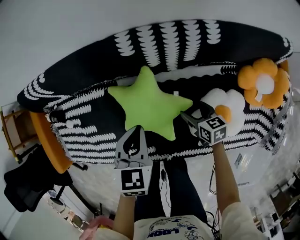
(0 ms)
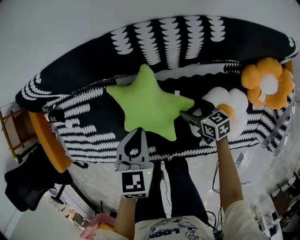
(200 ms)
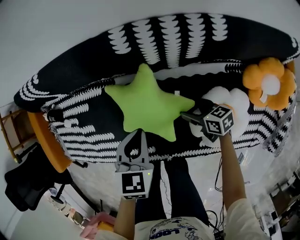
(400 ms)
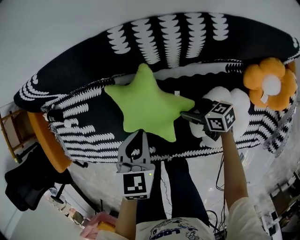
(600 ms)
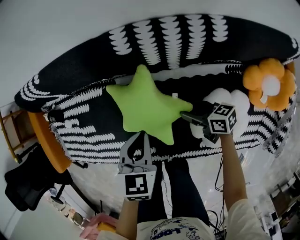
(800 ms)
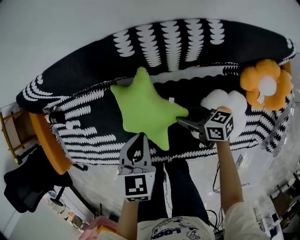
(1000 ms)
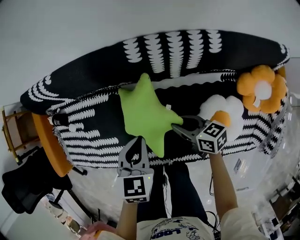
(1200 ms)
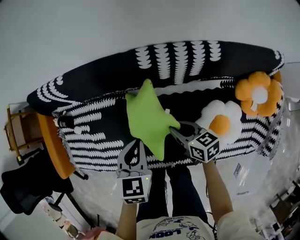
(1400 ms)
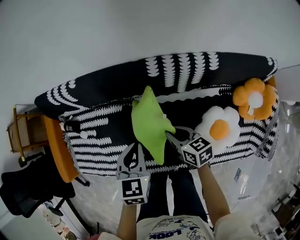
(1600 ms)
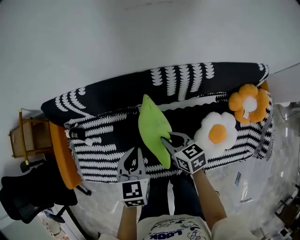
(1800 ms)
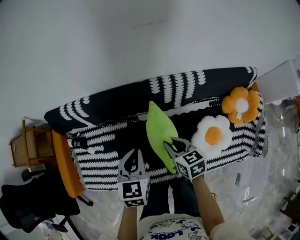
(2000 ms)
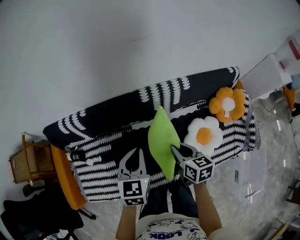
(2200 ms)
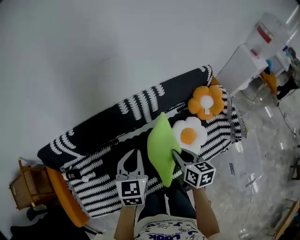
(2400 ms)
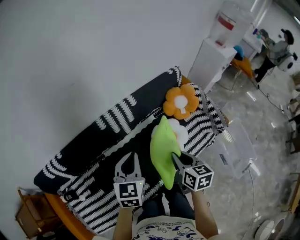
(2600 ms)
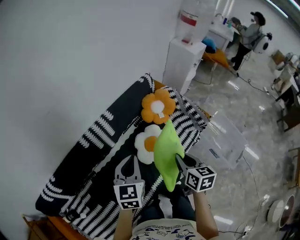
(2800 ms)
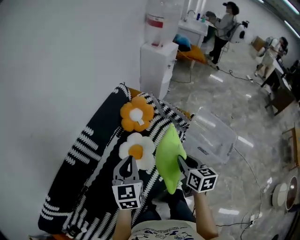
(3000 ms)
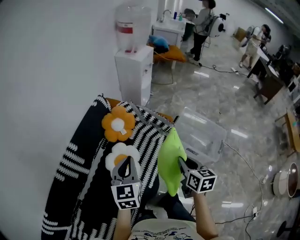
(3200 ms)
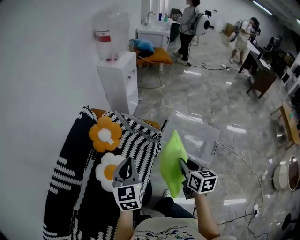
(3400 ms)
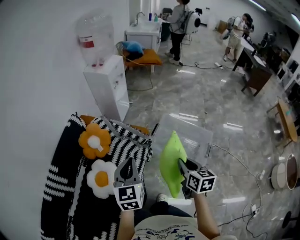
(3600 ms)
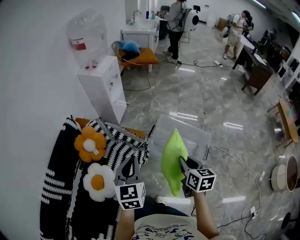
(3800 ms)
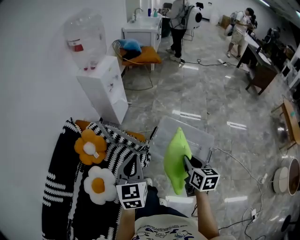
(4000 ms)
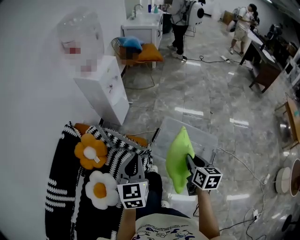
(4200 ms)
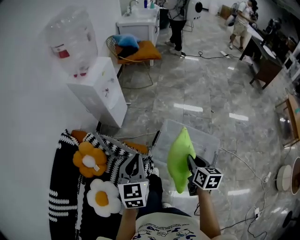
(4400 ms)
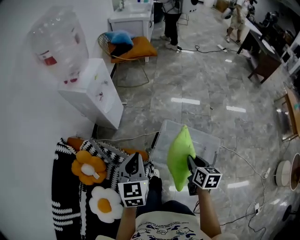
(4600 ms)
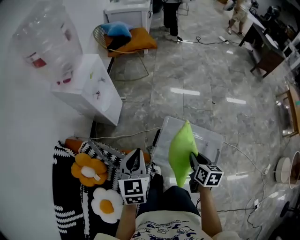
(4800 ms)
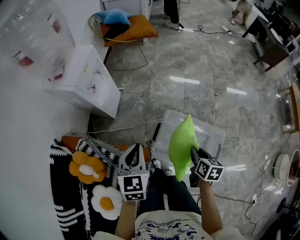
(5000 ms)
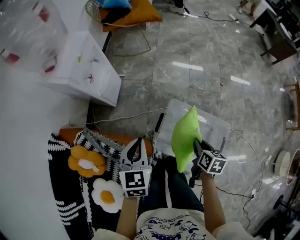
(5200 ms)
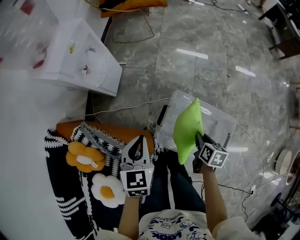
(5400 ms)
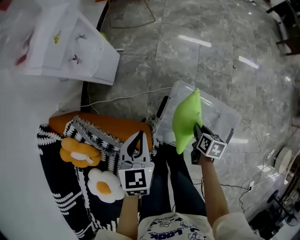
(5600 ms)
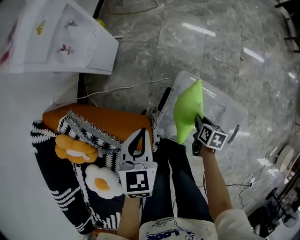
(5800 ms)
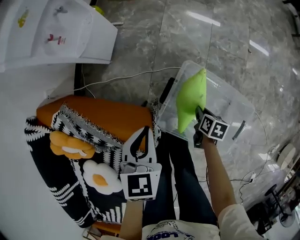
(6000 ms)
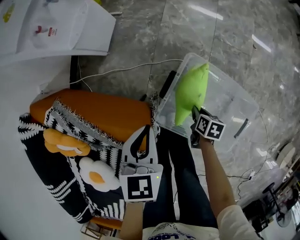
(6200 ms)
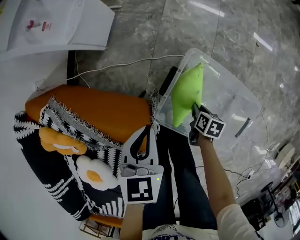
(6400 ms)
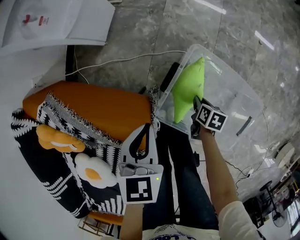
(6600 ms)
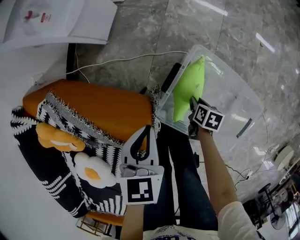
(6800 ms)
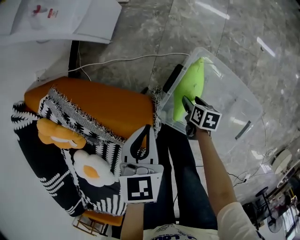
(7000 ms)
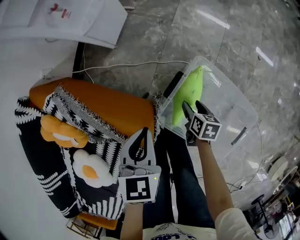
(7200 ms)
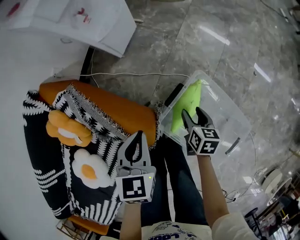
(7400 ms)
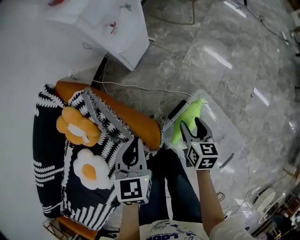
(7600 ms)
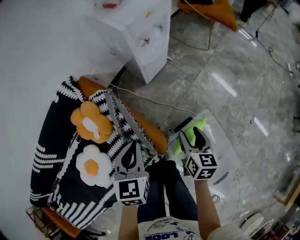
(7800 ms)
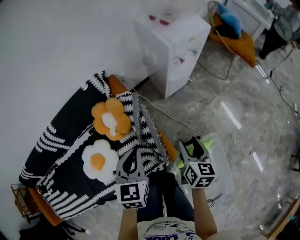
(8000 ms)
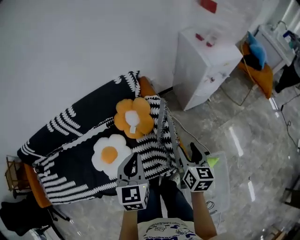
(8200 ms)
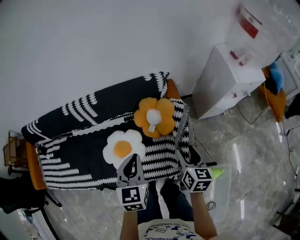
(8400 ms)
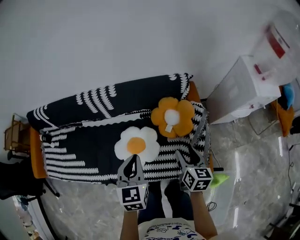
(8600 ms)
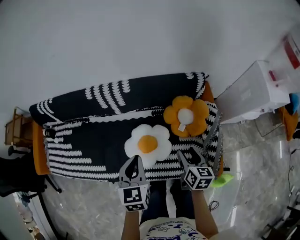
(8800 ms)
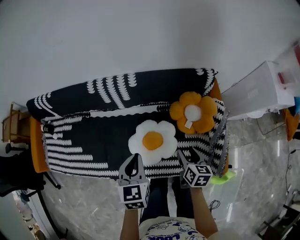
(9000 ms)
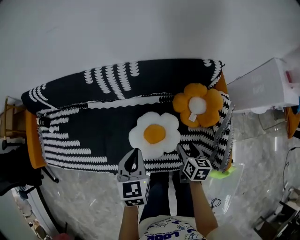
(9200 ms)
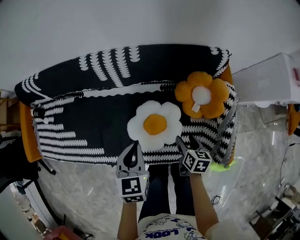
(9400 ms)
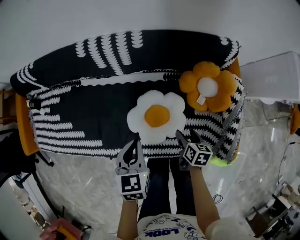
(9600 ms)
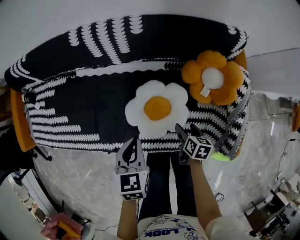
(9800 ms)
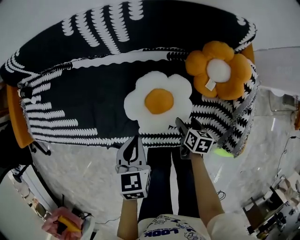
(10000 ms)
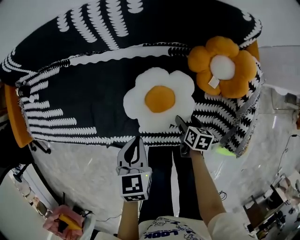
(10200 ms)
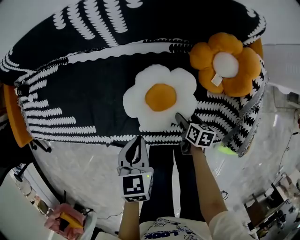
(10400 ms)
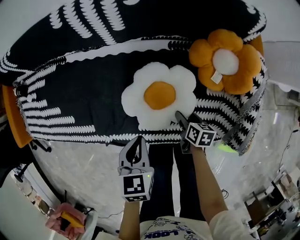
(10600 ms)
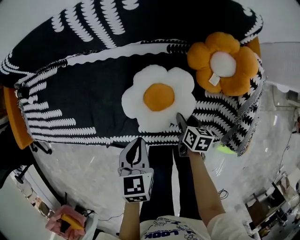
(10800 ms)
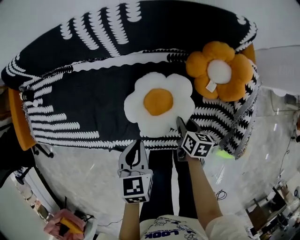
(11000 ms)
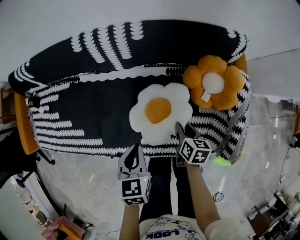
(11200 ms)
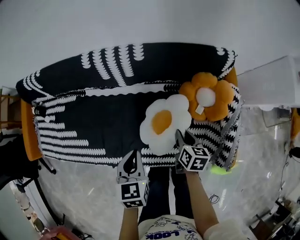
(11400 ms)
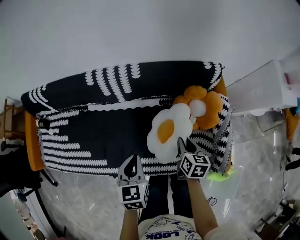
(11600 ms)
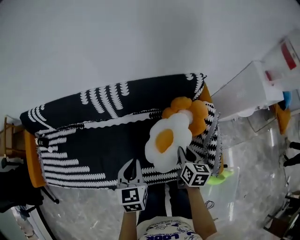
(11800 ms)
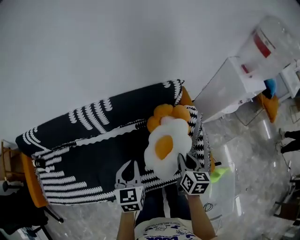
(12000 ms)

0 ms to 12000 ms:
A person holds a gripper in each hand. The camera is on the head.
0 ms to 1600 ms: The left gripper is displaced upward and to the left by about 15 cm; the right gripper is displaced upward and to the left by about 20 cm, and closes up.
1600 ms to 3000 ms: The left gripper ends up some 40 cm from where it was, and turns by approximately 60 degrees, while the right gripper moves some 60 cm, and swivels approximately 80 degrees.
3000 ms to 4400 ms: The pair of grippers is taken to the right and forward, approximately 60 cm. The right gripper rotates about 30 degrees.
4400 ms to 6000 ms: Both grippers travel together downward and forward, roughly 50 cm. The right gripper tilts its fingers some 30 degrees downward. The left gripper turns by about 20 degrees.
6000 ms to 7600 ms: The left gripper goes approximately 15 cm to the left and upward; the right gripper shifts about 25 cm upward and to the left, rotates approximately 40 degrees, and opens.
7600 ms to 9000 ms: Both grippers are carried some 60 cm. The left gripper swivels roughly 60 degrees; the right gripper turns by roughly 50 degrees.
9000 ms to 10400 ms: The two grippers go some 25 cm downward. The right gripper changes its angle by roughly 30 degrees.
10400 ms to 12000 ms: The right gripper goes approximately 40 cm upward, rotates approximately 40 degrees, and closes its fingers; the left gripper moves upward, roughly 25 cm, and swivels some 30 degrees.

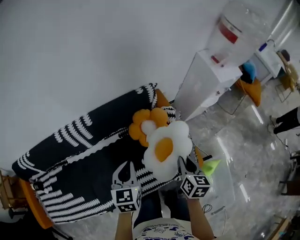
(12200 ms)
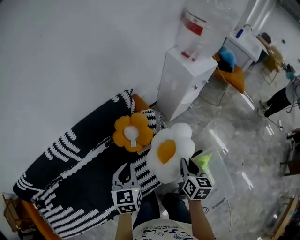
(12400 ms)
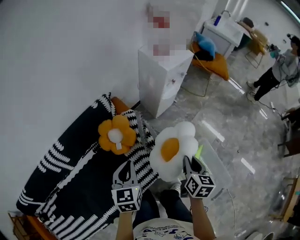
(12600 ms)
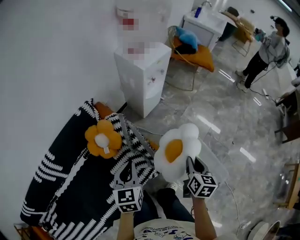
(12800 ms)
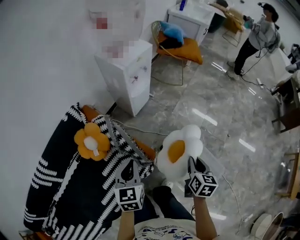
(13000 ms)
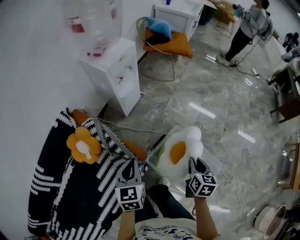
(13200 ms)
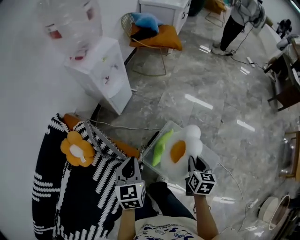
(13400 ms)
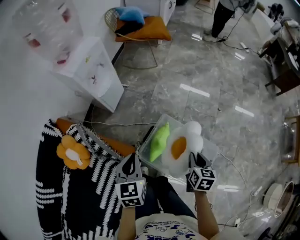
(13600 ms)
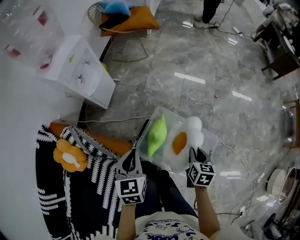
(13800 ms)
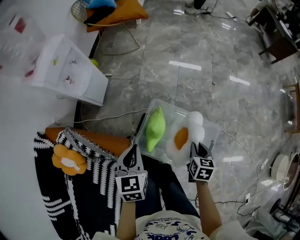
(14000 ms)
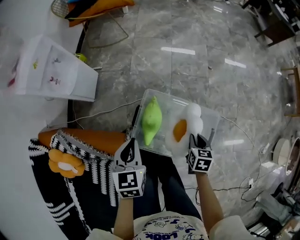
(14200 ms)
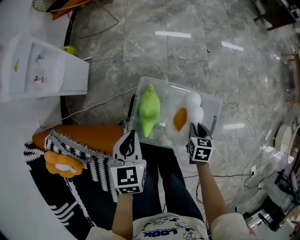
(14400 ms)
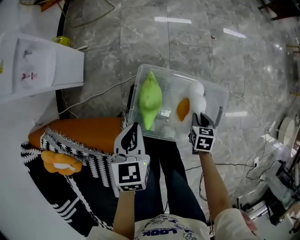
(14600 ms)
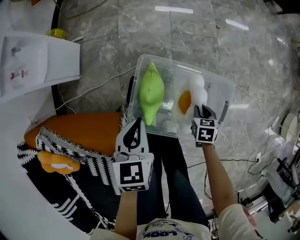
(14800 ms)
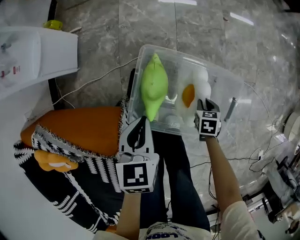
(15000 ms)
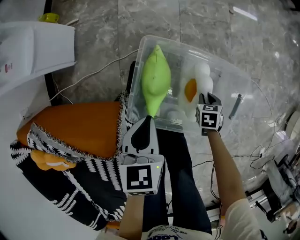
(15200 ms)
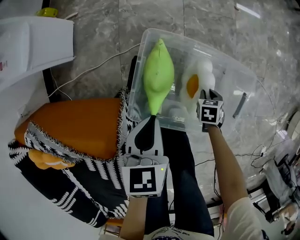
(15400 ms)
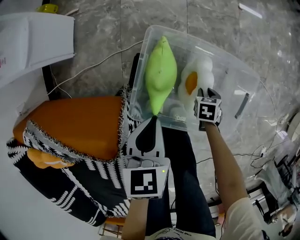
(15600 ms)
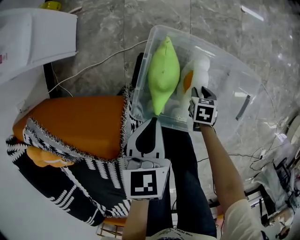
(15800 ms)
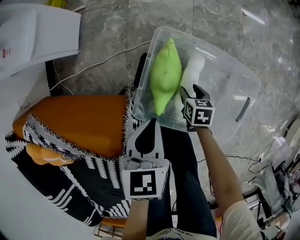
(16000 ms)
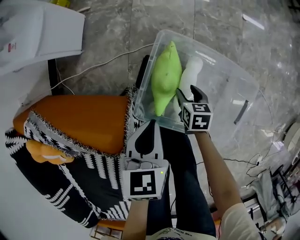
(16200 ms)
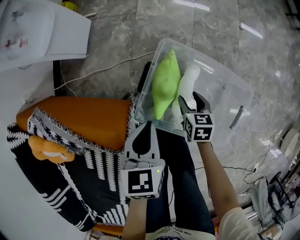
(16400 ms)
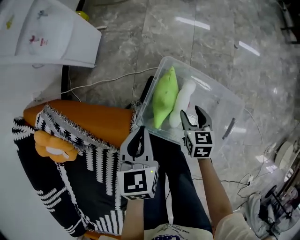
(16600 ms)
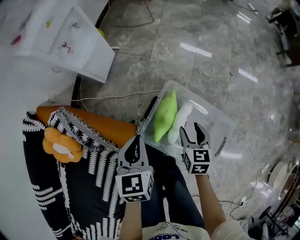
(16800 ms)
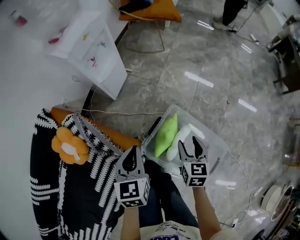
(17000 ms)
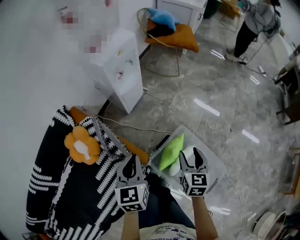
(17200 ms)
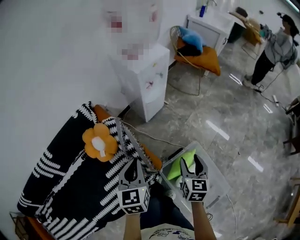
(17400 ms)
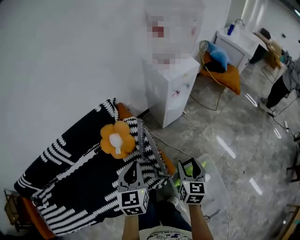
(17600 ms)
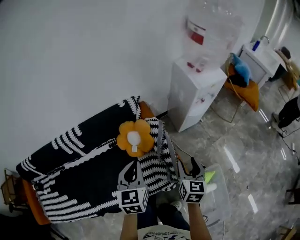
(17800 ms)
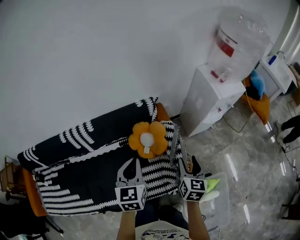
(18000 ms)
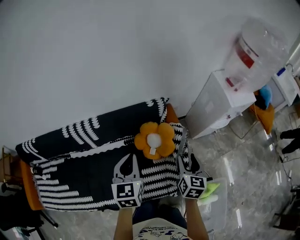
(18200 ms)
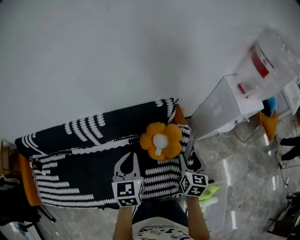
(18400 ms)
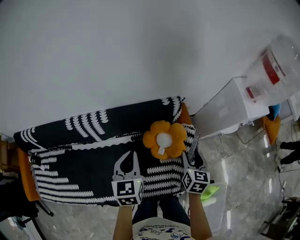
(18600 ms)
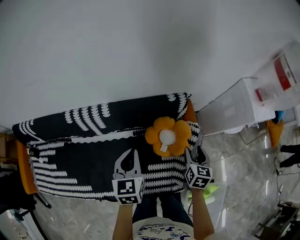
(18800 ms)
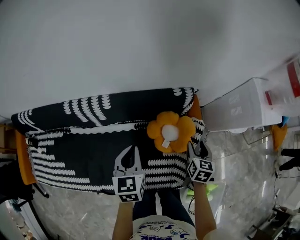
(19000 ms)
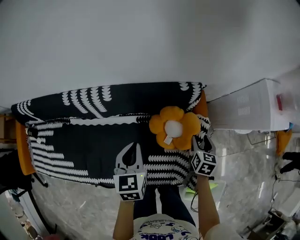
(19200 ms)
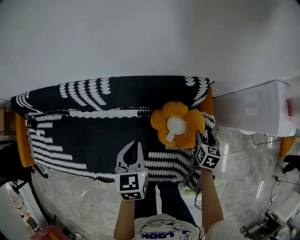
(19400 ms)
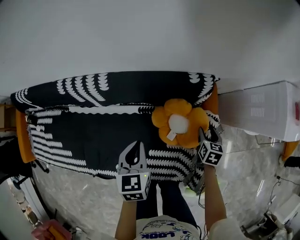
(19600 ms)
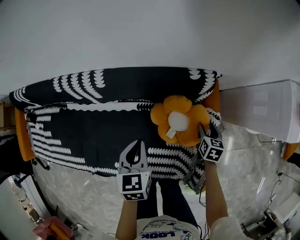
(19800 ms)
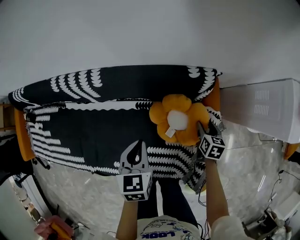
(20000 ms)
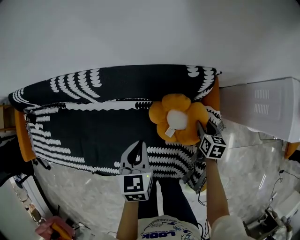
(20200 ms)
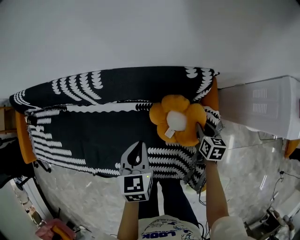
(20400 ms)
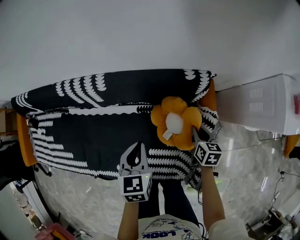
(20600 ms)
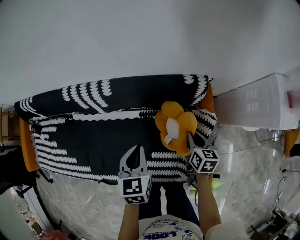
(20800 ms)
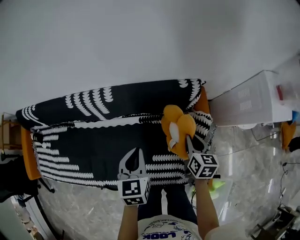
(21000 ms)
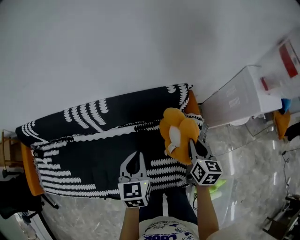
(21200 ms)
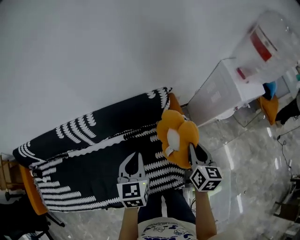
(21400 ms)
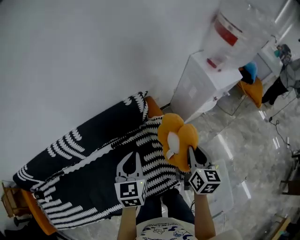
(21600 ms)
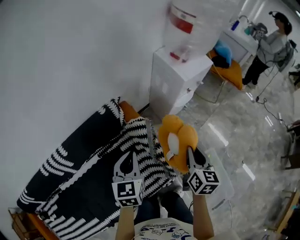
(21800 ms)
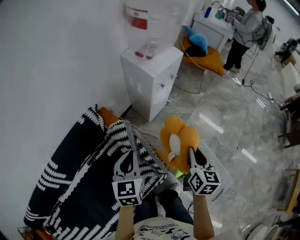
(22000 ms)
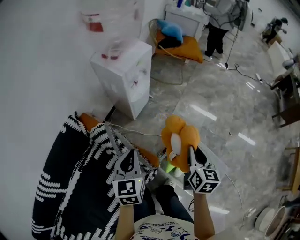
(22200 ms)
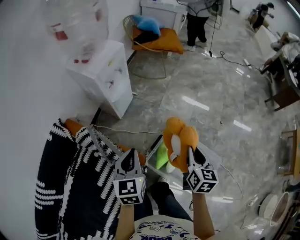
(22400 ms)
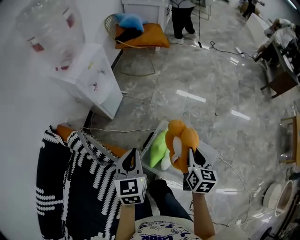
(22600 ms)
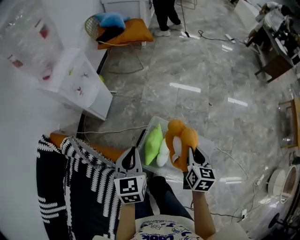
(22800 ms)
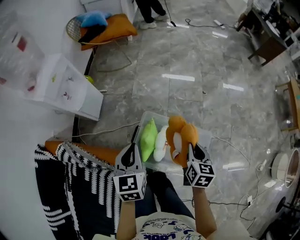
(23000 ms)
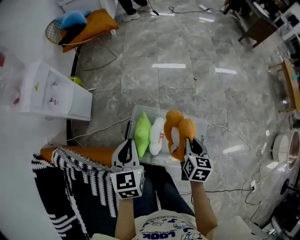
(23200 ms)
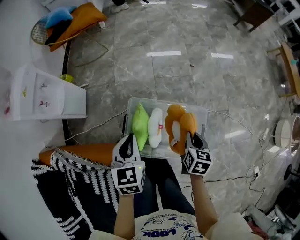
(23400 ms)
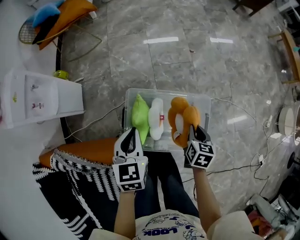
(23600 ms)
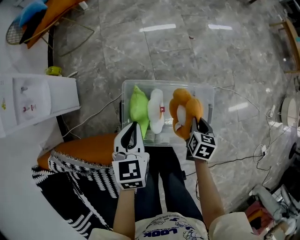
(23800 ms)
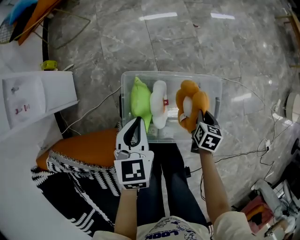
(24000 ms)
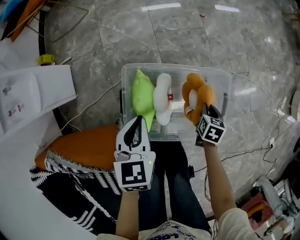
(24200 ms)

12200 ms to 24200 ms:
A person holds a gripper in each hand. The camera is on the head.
12200 ms to 13800 ms: The two grippers travel together, about 60 cm. The left gripper rotates some 50 degrees. The right gripper turns by roughly 50 degrees.
13800 ms to 15200 ms: Both grippers travel together downward, approximately 35 cm. The right gripper changes its angle by some 30 degrees. Meanwhile the left gripper rotates some 20 degrees.
15200 ms to 16600 ms: The left gripper moves approximately 10 cm; the right gripper is displaced upward by roughly 15 cm, changes its angle by roughly 30 degrees, and opens.
16600 ms to 18200 ms: Both grippers are carried roughly 60 cm. The right gripper changes its angle by approximately 50 degrees, while the left gripper turns by about 70 degrees.
18200 ms to 19800 ms: The left gripper heads downward and forward, covering approximately 25 cm, and changes its angle by roughly 30 degrees, while the right gripper shifts approximately 35 cm downward and forward, and turns by about 30 degrees.
19800 ms to 21200 ms: The right gripper heads upward, covering some 25 cm, changes its angle by about 20 degrees, and closes its fingers; the left gripper travels upward and backward by approximately 15 cm.
21200 ms to 22600 ms: The pair of grippers is taken roughly 70 cm. The right gripper changes its angle by roughly 70 degrees; the left gripper changes its angle by about 60 degrees.
22600 ms to 24200 ms: Both grippers move downward, approximately 40 cm. The right gripper points its fingers some 30 degrees further downward, while the left gripper turns by about 40 degrees.
